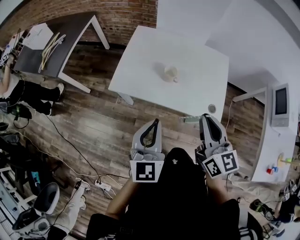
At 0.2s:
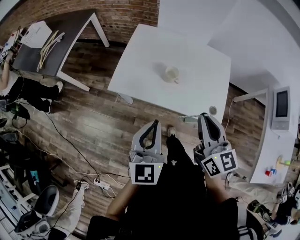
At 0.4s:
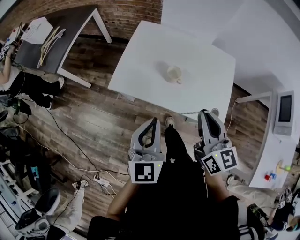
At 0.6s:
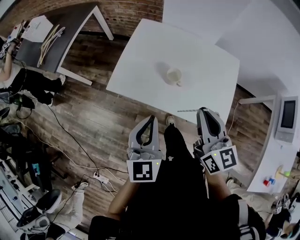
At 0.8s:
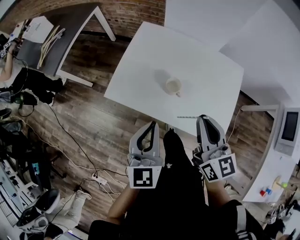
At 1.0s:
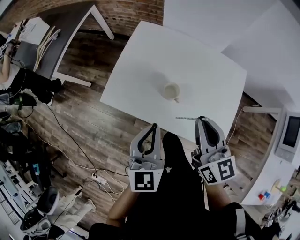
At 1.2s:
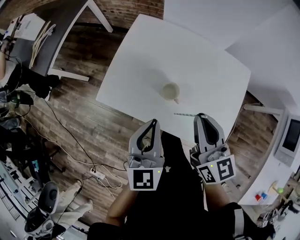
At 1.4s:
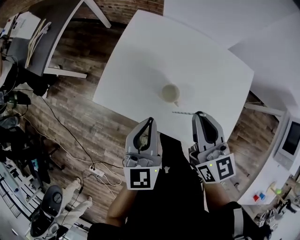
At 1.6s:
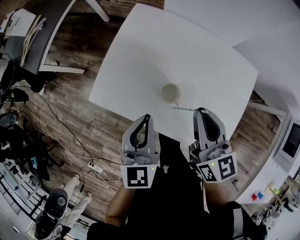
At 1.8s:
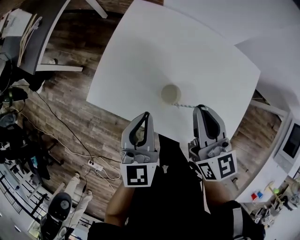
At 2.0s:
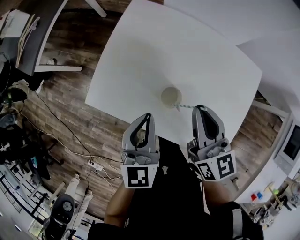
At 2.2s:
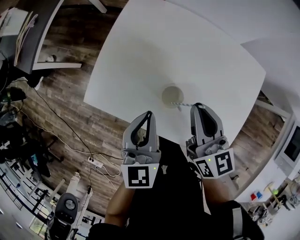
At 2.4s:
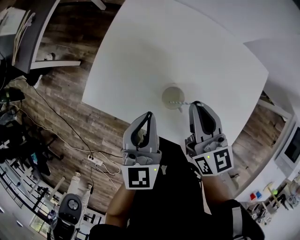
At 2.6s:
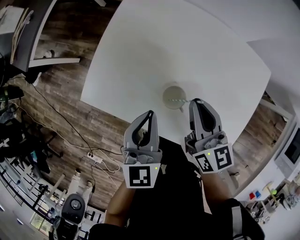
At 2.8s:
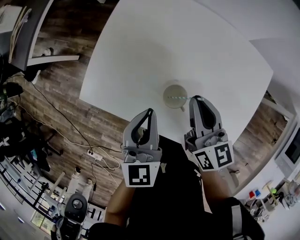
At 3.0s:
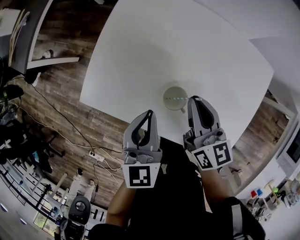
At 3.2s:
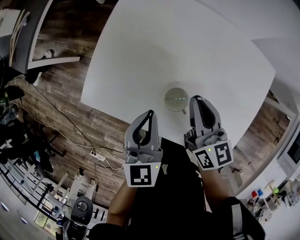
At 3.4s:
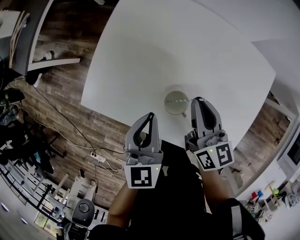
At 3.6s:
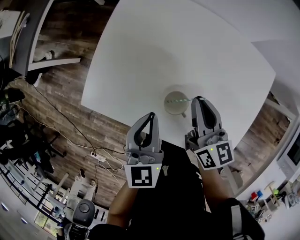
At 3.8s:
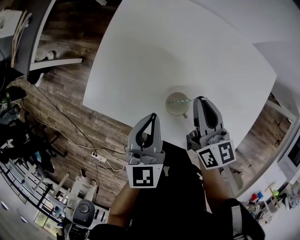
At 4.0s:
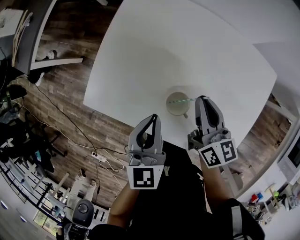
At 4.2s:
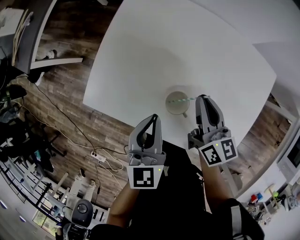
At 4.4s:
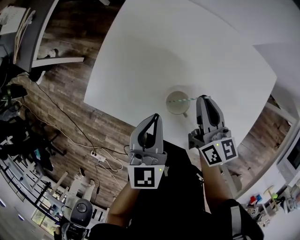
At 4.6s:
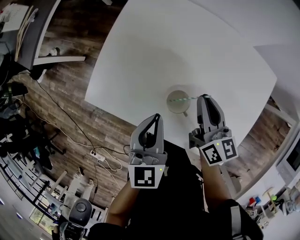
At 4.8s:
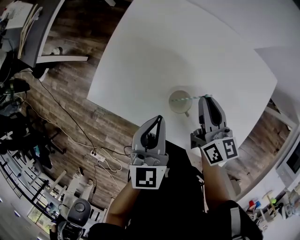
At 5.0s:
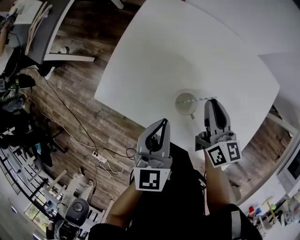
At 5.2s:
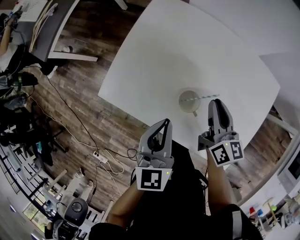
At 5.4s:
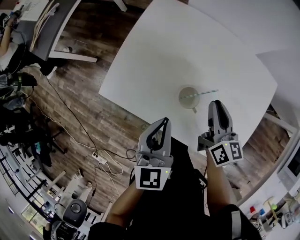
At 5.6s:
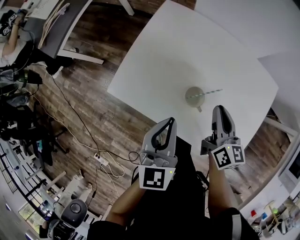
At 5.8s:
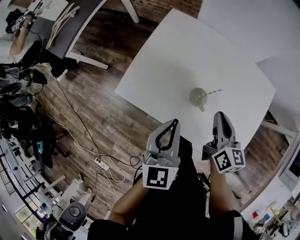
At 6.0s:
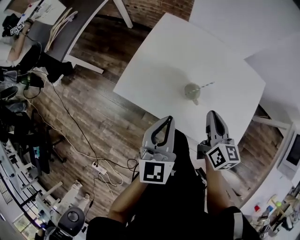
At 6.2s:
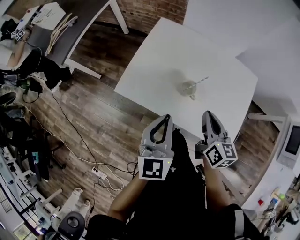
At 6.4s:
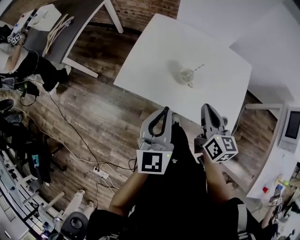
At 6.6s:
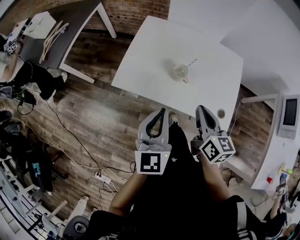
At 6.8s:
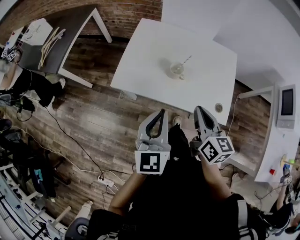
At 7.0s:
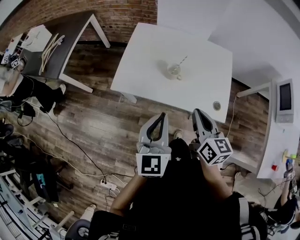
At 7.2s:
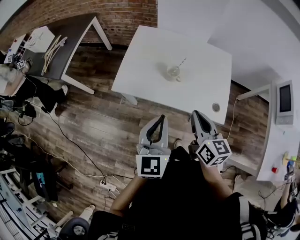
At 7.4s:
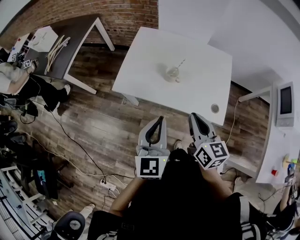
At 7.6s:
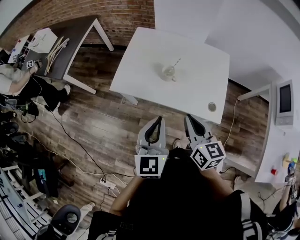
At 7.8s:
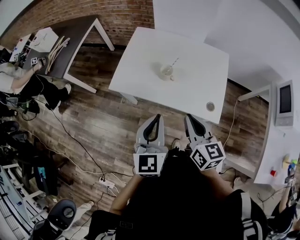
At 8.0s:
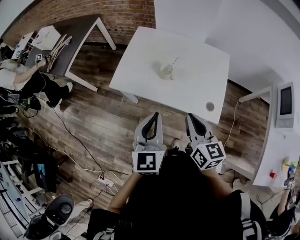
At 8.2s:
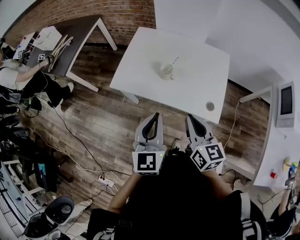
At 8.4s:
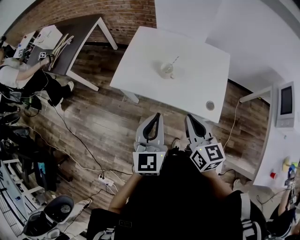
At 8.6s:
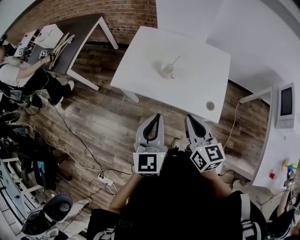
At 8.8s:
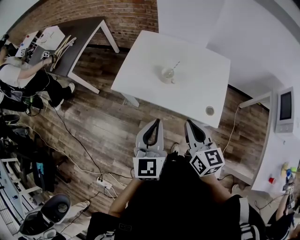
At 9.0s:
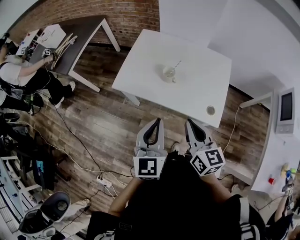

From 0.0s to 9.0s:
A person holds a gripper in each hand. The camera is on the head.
From 0.0s to 1.6s: The grippers both shift forward and downward by approximately 25 cm.
From 1.6s to 3.0s: The right gripper moves downward and forward, roughly 15 cm, while the left gripper heads downward, covering about 10 cm.
From 3.0s to 4.4s: The grippers move only a little.
From 4.4s to 6.0s: The left gripper travels upward and backward by some 15 cm. Meanwhile the right gripper travels backward and upward by some 15 cm.
From 6.0s to 7.6s: The grippers both shift backward and upward by some 20 cm.
From 7.6s to 9.0s: The grippers stay close to where they were, moving slightly.

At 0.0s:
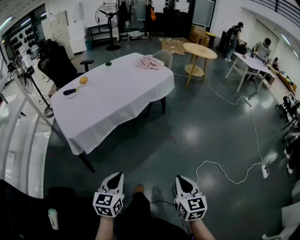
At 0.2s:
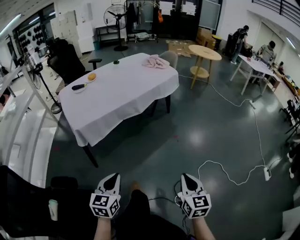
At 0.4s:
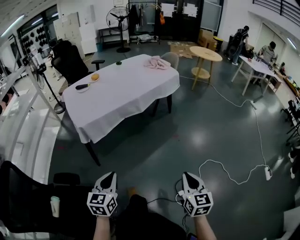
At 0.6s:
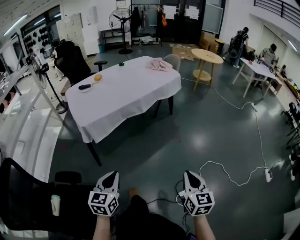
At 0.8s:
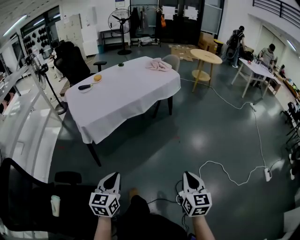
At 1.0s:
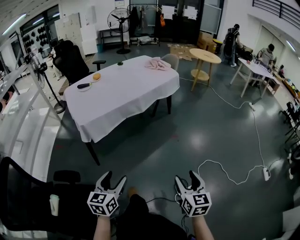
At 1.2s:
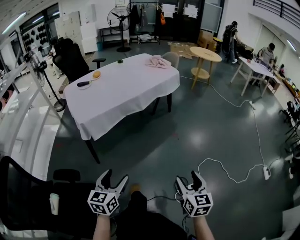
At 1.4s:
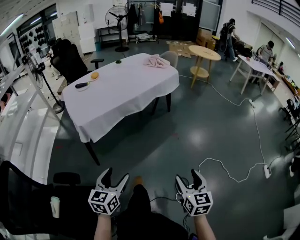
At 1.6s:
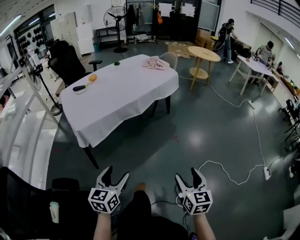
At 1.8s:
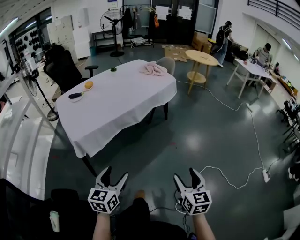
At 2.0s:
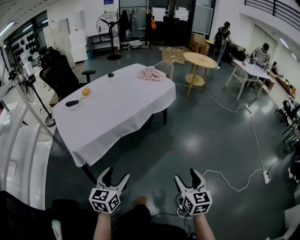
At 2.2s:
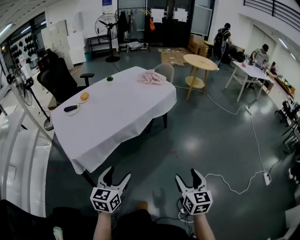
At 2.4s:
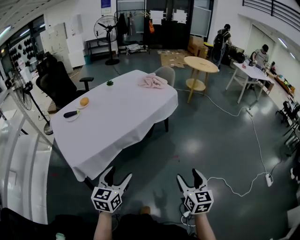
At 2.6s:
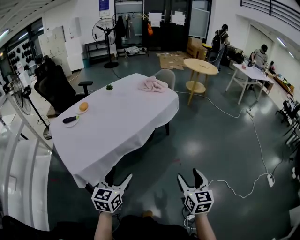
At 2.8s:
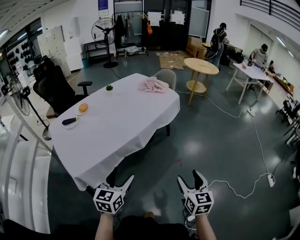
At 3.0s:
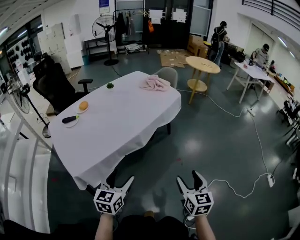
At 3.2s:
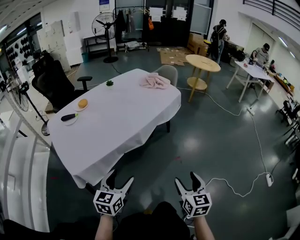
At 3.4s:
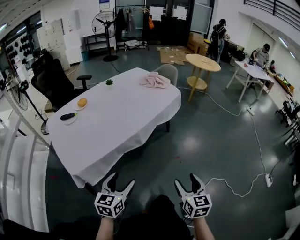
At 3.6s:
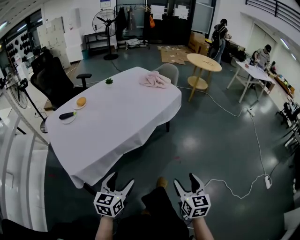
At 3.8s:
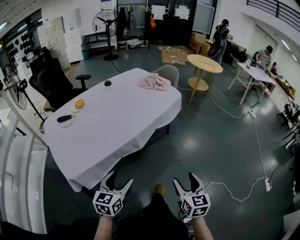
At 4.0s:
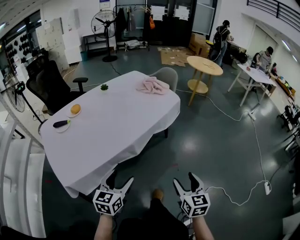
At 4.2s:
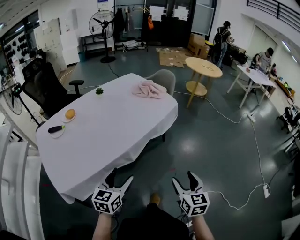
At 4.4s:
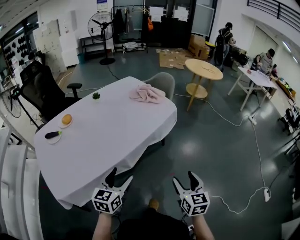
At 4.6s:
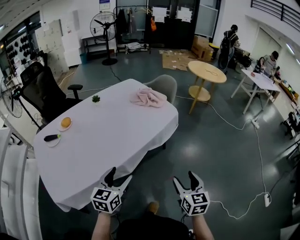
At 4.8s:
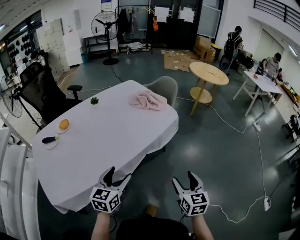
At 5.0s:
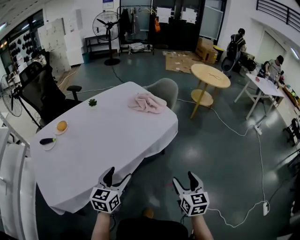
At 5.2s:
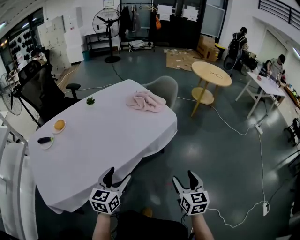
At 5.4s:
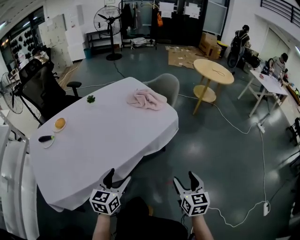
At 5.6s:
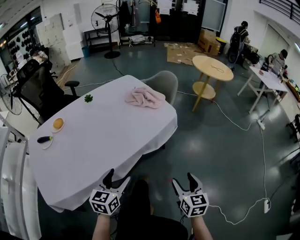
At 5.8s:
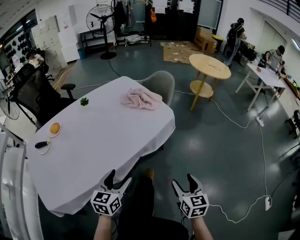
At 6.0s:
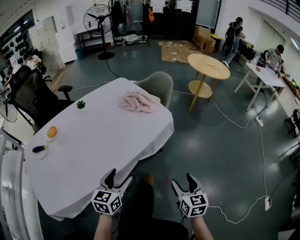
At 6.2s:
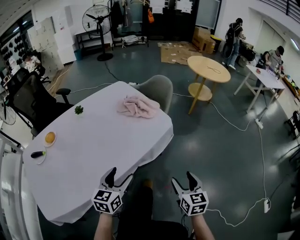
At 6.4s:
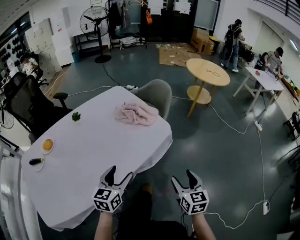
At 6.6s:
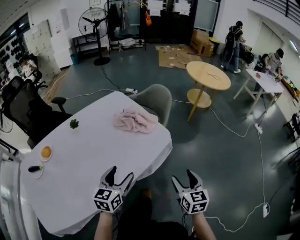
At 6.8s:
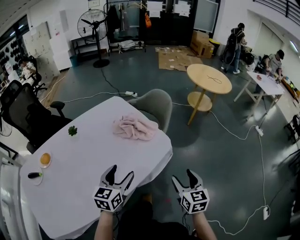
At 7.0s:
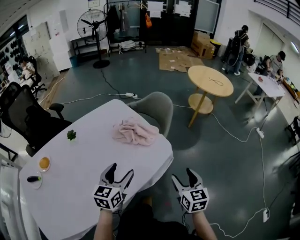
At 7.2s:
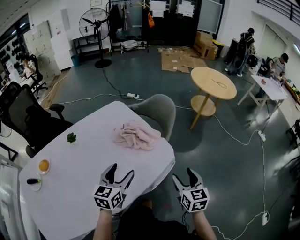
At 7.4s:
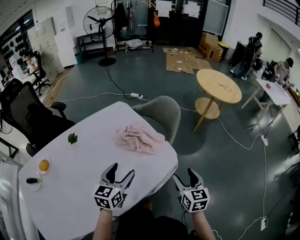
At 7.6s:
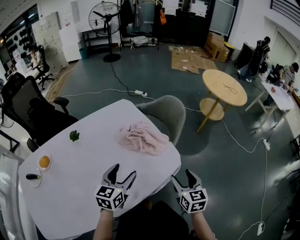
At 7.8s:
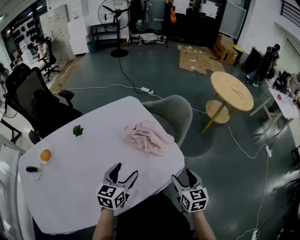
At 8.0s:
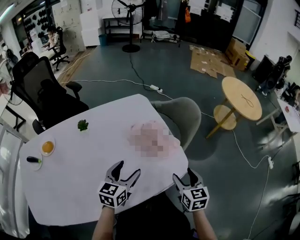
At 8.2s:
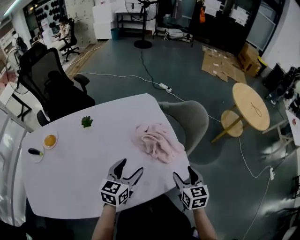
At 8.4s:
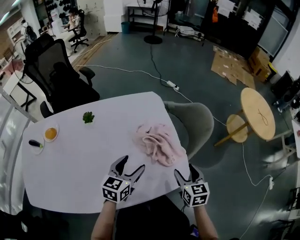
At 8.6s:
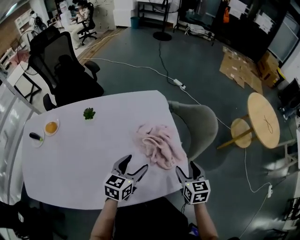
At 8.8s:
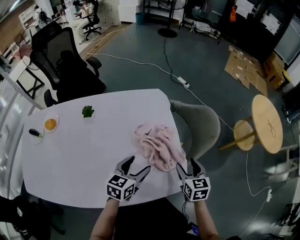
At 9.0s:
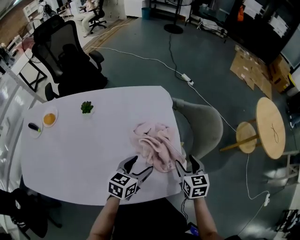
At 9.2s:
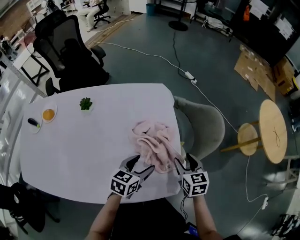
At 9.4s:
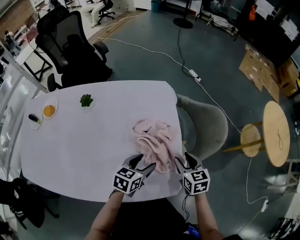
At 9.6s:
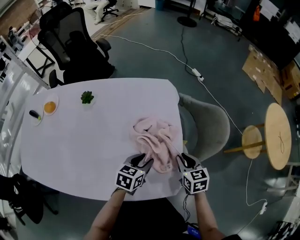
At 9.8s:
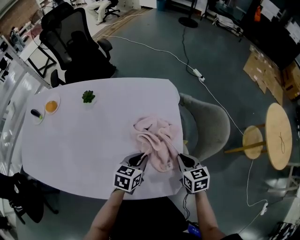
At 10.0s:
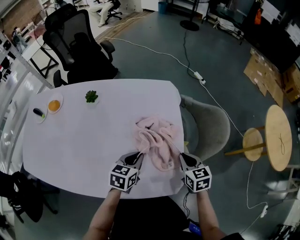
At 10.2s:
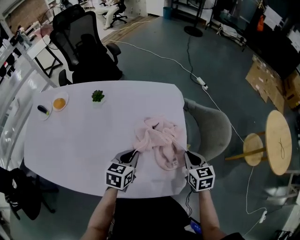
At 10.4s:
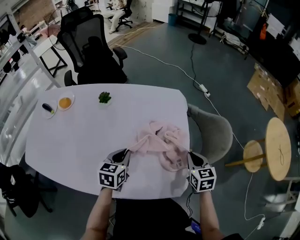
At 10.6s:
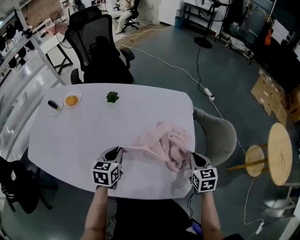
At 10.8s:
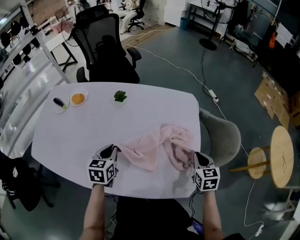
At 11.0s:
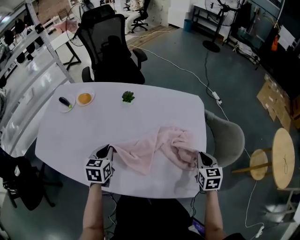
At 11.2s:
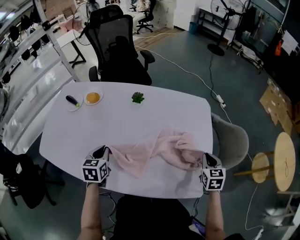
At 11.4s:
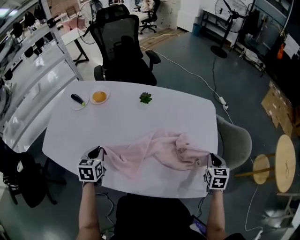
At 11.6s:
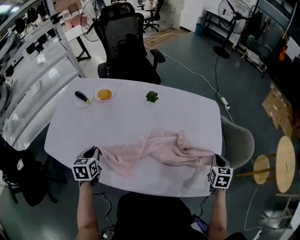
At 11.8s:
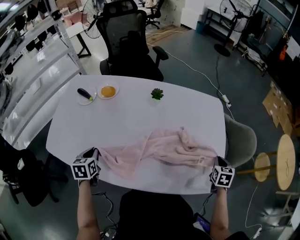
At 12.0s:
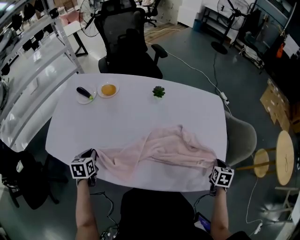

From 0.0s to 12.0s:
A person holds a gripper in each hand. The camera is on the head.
From 0.0s to 1.6s: The left gripper is displaced backward by roughly 5 cm, and opens its fingers. Meanwhile the right gripper opens.
From 1.6s to 3.0s: The two grippers go about 25 cm forward.
From 3.0s to 4.4s: The two grippers go about 20 cm forward.
From 4.4s to 6.0s: Both grippers move forward and to the right, about 15 cm.
From 6.0s to 7.6s: The grippers both shift forward by about 30 cm.
From 7.6s to 9.0s: The right gripper travels forward by approximately 25 cm, and swivels approximately 30 degrees; the left gripper is displaced forward, downward and to the right by some 15 cm, and changes its angle by about 20 degrees.
From 9.0s to 10.4s: The right gripper closes up, while the left gripper travels to the left by roughly 10 cm, changes its angle by some 30 degrees, and closes up.
From 10.4s to 12.0s: The right gripper is displaced to the left by some 5 cm, and swivels some 30 degrees; the left gripper travels to the left by approximately 40 cm, and turns by roughly 30 degrees.

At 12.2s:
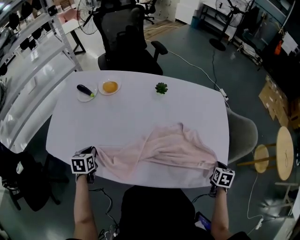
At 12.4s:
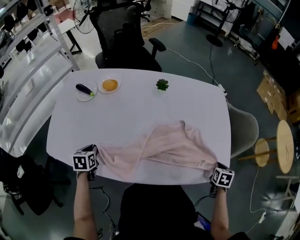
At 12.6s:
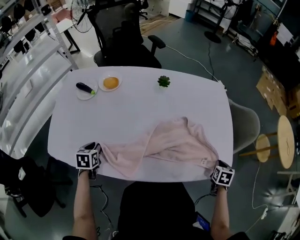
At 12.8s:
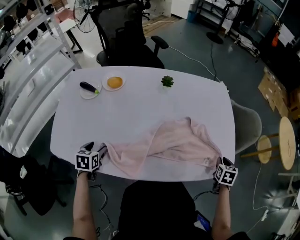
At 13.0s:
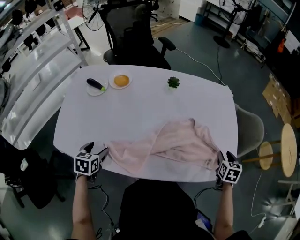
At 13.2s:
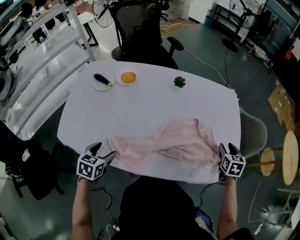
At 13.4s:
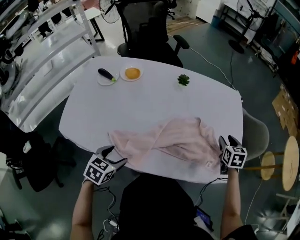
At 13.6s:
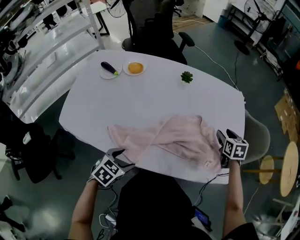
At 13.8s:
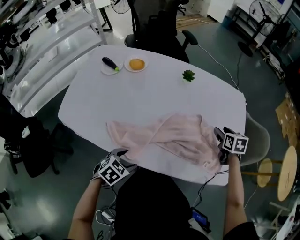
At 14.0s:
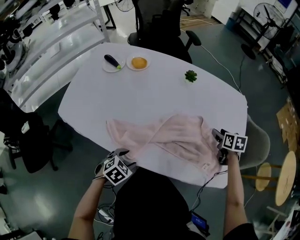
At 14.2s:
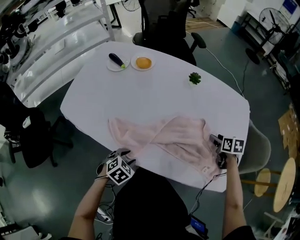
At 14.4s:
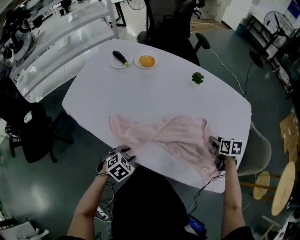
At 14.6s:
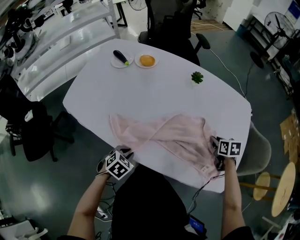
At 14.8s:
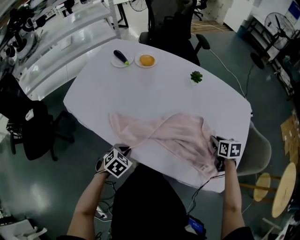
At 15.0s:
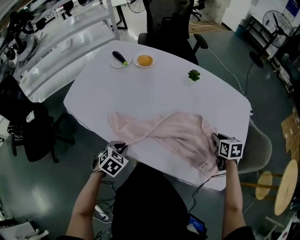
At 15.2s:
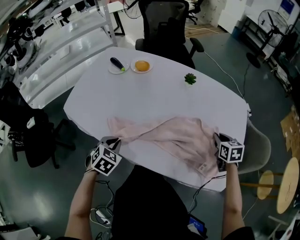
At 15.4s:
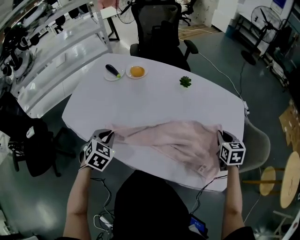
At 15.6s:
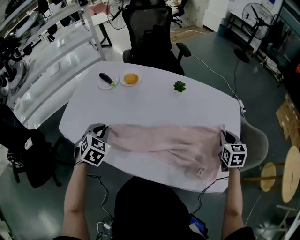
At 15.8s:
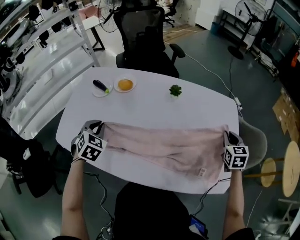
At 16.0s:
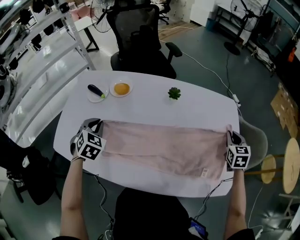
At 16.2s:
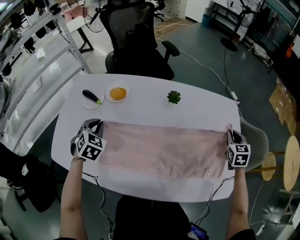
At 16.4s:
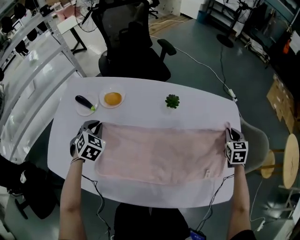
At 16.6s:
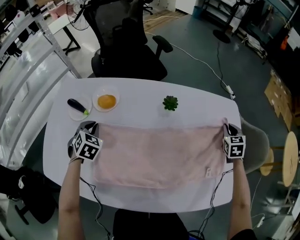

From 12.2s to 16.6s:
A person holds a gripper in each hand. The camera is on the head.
From 12.2s to 13.6s: The right gripper is displaced to the left and forward by about 20 cm, turns by approximately 30 degrees, and opens its fingers. The left gripper shifts some 20 cm to the right and backward, rotates approximately 40 degrees, and opens up.
From 13.6s to 15.2s: The right gripper closes; the left gripper goes downward and returns, about 5 cm each way, turns by some 30 degrees, and closes.
From 15.2s to 16.6s: The right gripper travels forward and to the right by about 20 cm, and swivels about 30 degrees, while the left gripper travels forward by approximately 35 cm.
